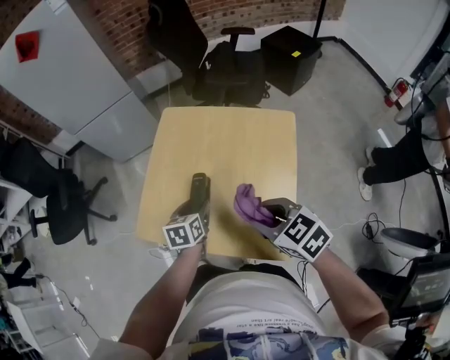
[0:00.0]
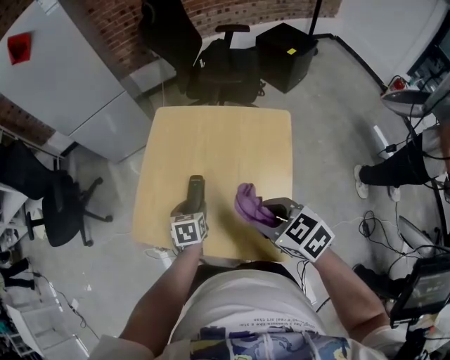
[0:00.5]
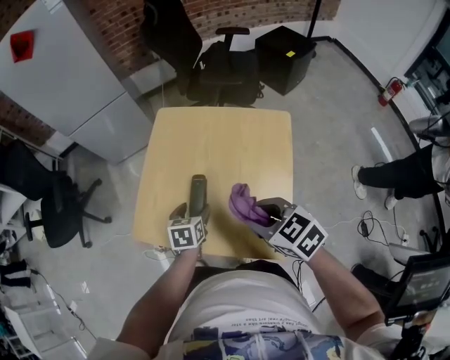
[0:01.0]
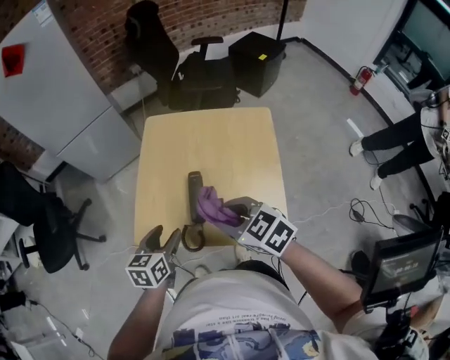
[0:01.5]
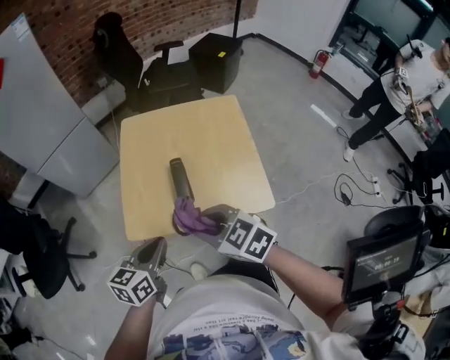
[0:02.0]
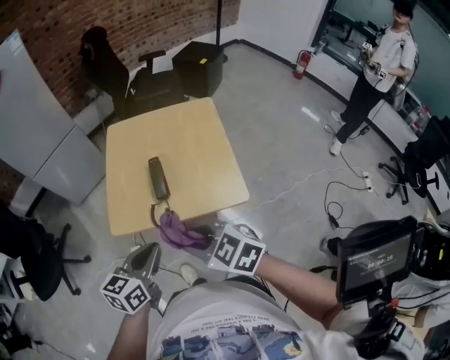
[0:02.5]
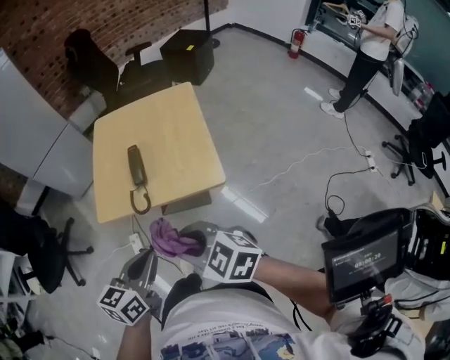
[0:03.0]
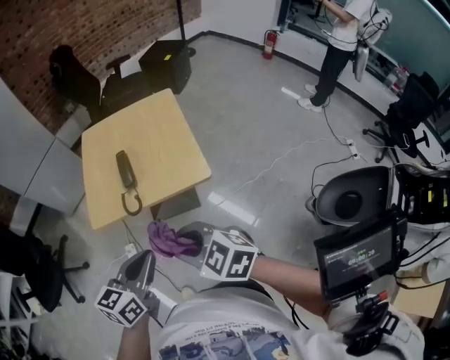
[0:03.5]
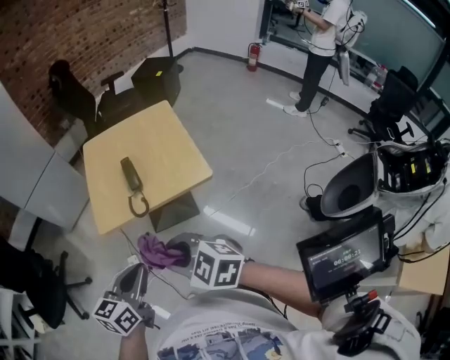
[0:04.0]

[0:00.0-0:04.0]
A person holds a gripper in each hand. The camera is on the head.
0:00.0 to 0:02.0: The right gripper goes approximately 15 cm to the left; the left gripper goes about 20 cm to the left, backward and upward, swivels approximately 40 degrees, and closes its fingers.
0:02.0 to 0:04.0: The grippers both shift backward by approximately 20 cm.

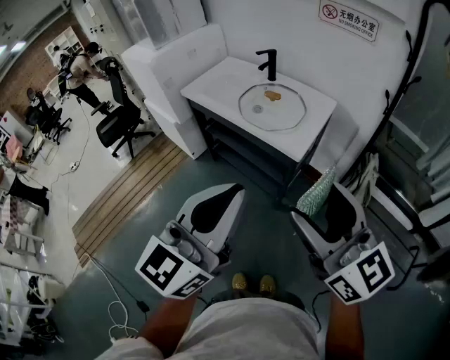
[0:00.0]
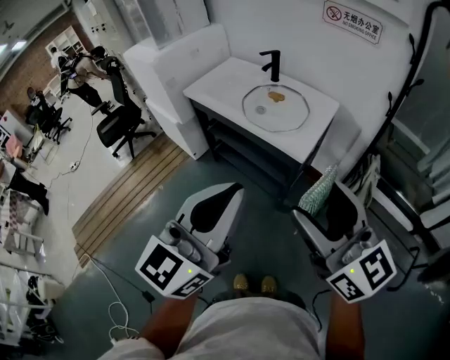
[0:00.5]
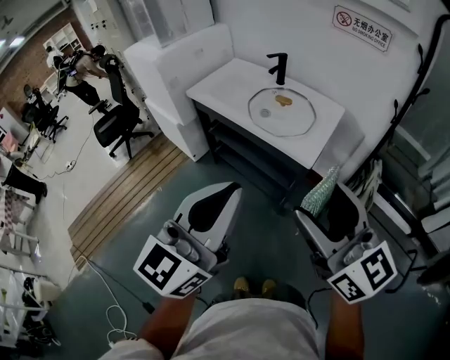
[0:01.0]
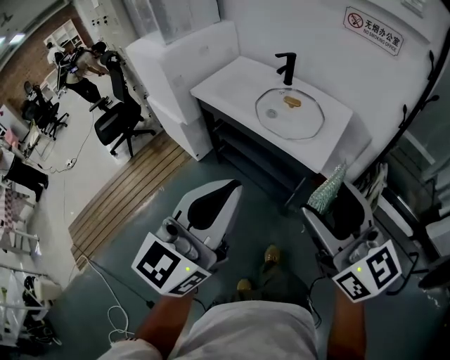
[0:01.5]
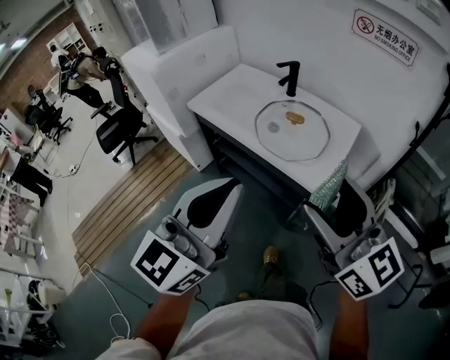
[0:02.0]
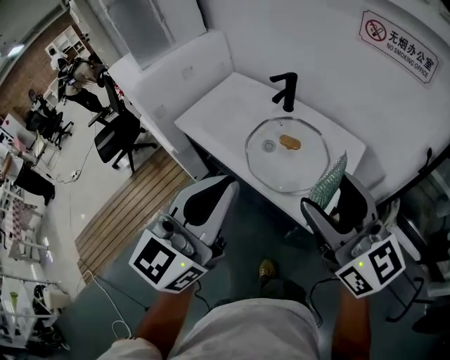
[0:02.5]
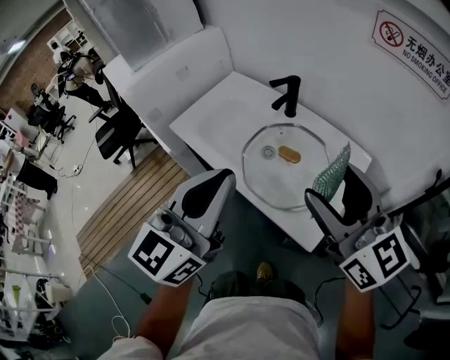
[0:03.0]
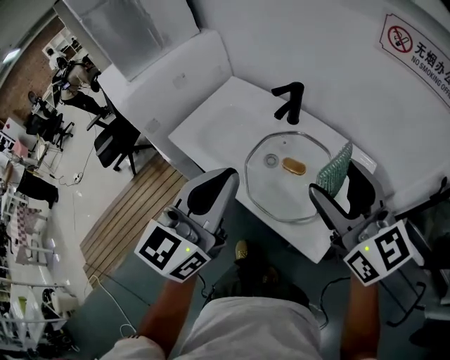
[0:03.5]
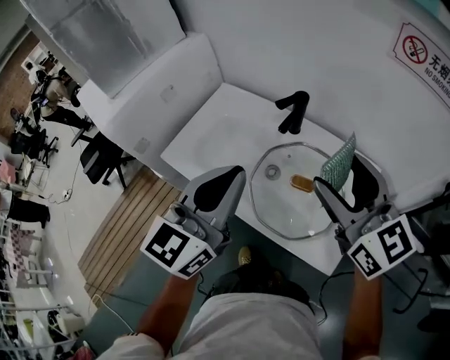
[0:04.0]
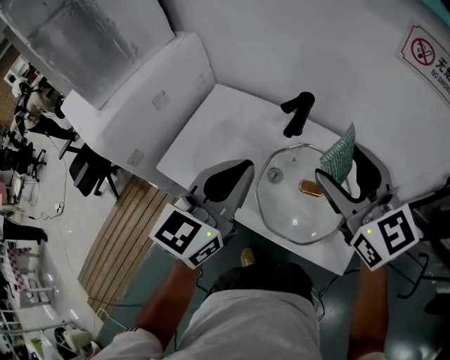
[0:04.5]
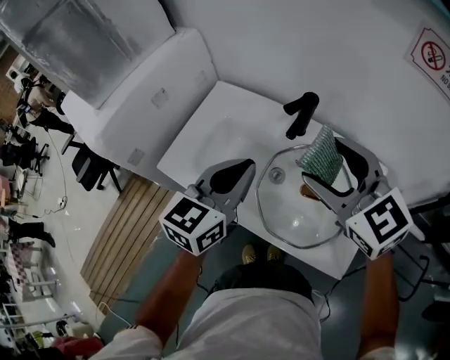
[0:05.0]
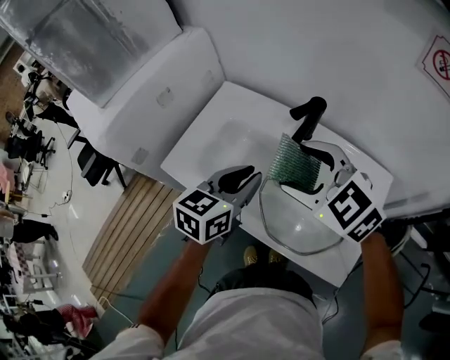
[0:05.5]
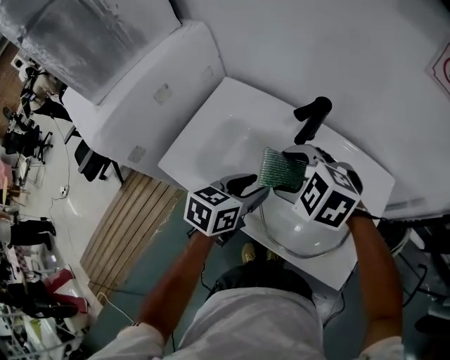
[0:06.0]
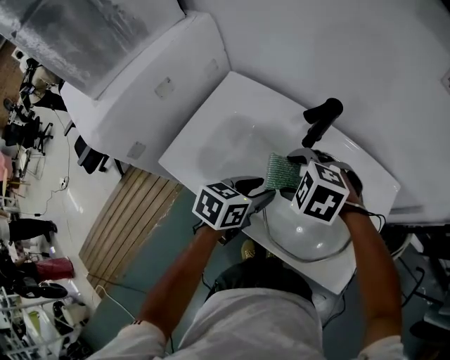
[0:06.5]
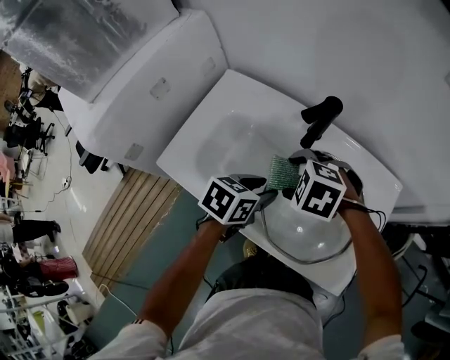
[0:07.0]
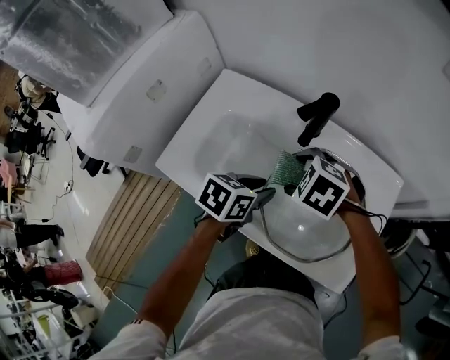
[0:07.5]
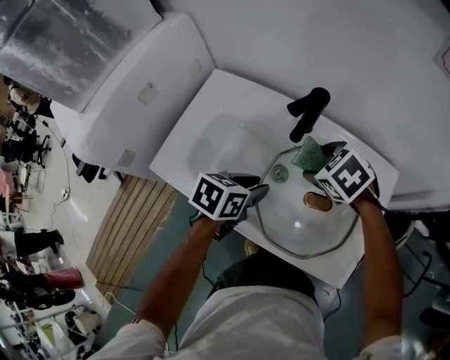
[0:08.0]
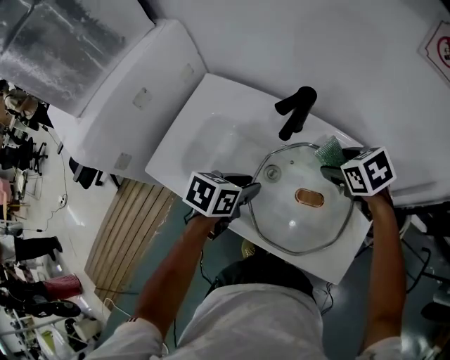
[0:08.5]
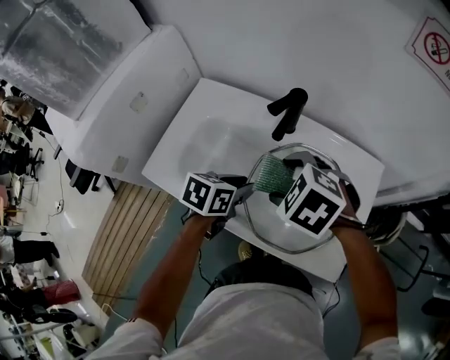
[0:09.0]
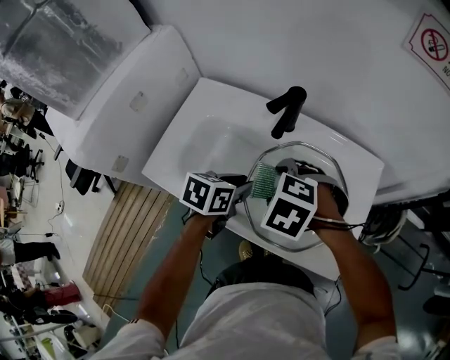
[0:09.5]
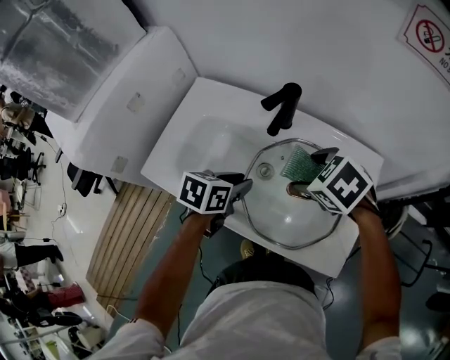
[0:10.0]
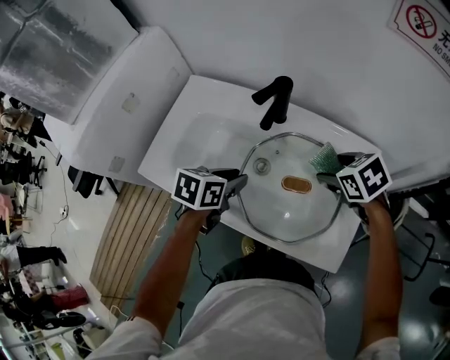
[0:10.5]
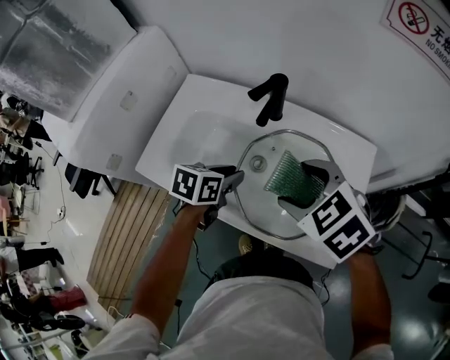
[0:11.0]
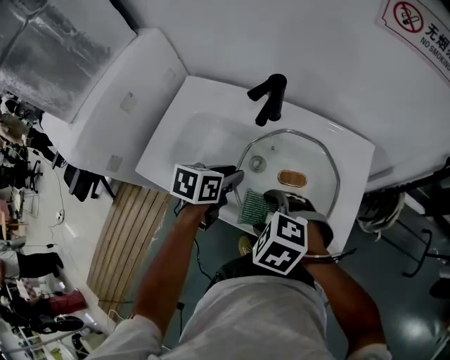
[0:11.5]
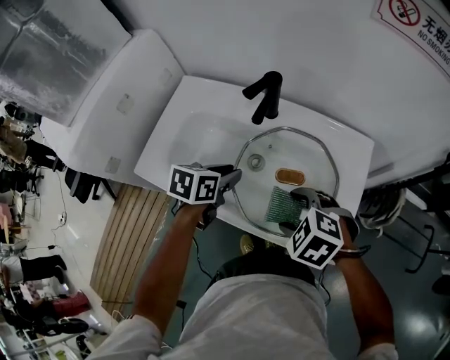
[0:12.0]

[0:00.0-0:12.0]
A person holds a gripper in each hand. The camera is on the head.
0:00.0 to 0:02.0: The left gripper goes roughly 15 cm forward and to the left. The right gripper is displaced forward by approximately 15 cm.
0:02.0 to 0:04.0: The two grippers go about 35 cm forward.
0:04.0 to 0:06.0: The right gripper is displaced downward, to the left and forward by some 25 cm, and tilts its fingers roughly 50 degrees downward. The left gripper shifts approximately 25 cm downward and forward, points its fingers roughly 30 degrees further downward, and opens.
0:06.0 to 0:08.0: The right gripper goes approximately 15 cm to the right, downward and forward, and changes its angle by approximately 30 degrees; the left gripper moves downward, approximately 5 cm.
0:08.0 to 0:10.0: The right gripper moves left and right over roughly 15 cm, changing direction 2 times.
0:10.0 to 0:12.0: The right gripper swings left and right, approximately 15 cm each way, with 2 reversals.

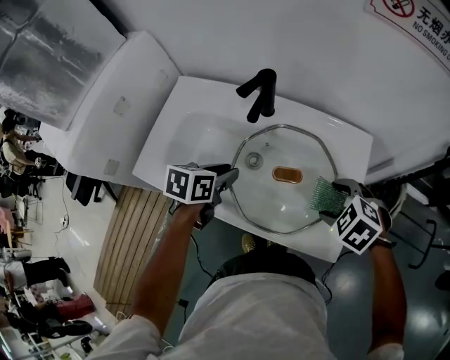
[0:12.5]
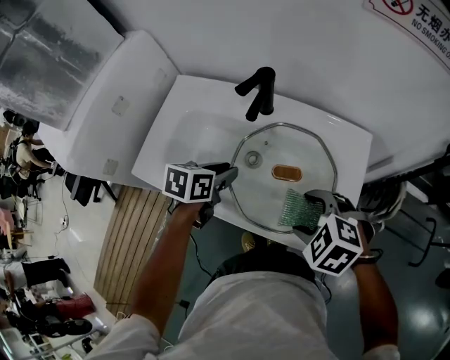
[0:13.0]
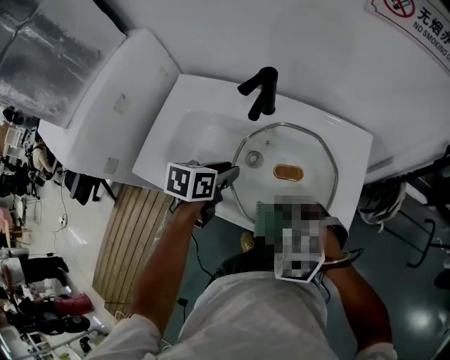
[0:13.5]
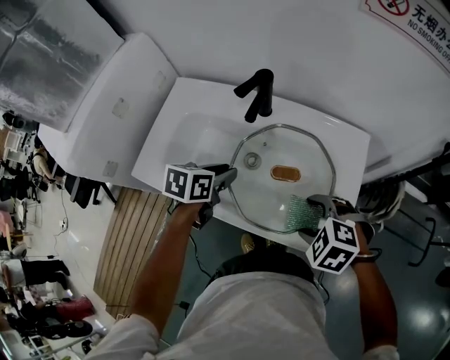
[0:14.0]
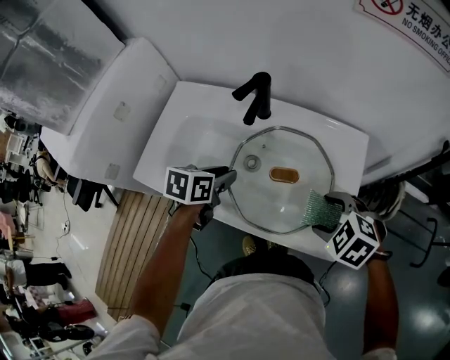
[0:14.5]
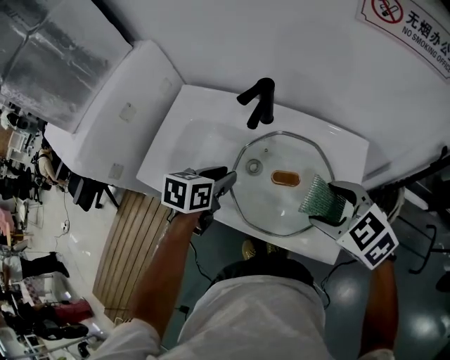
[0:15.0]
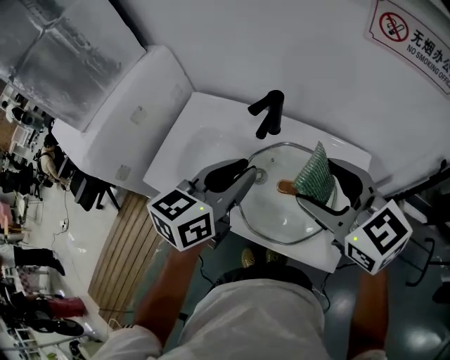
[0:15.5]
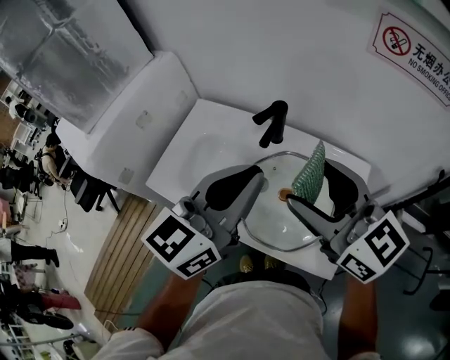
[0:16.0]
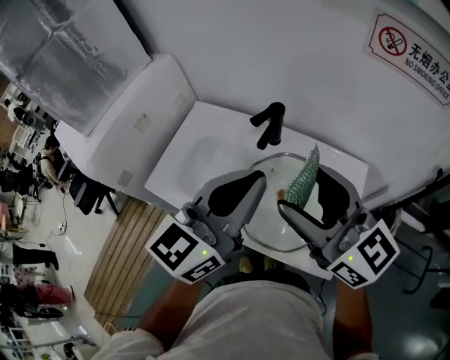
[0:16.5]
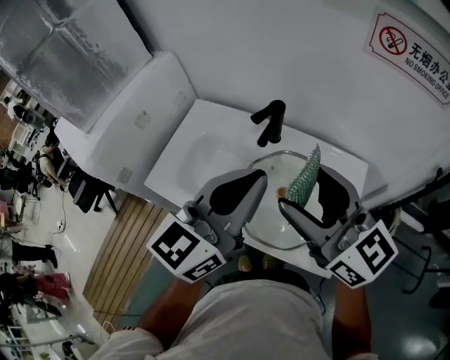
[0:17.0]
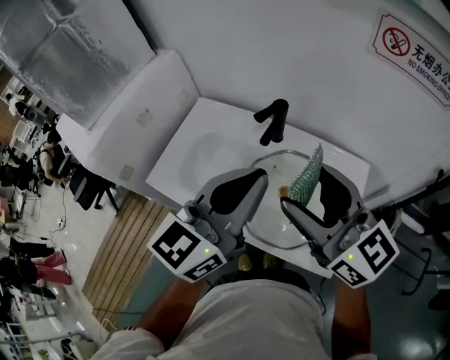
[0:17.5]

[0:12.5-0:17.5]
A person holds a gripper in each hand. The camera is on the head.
0:12.5 to 0:15.0: The right gripper is displaced upward by some 10 cm, goes to the left and returns, some 15 cm each way, and rotates about 20 degrees.
0:15.0 to 0:17.5: The right gripper heads upward and to the left, covering about 20 cm, and angles its fingers upward, by approximately 50 degrees. Meanwhile the left gripper goes about 25 cm upward, points its fingers approximately 50 degrees further upward, and closes.

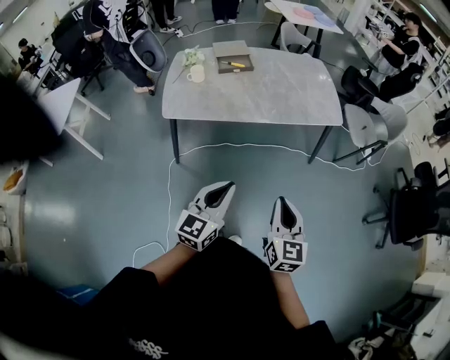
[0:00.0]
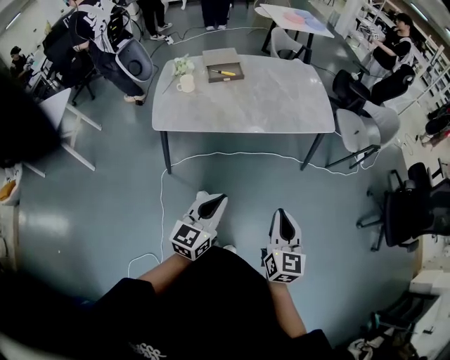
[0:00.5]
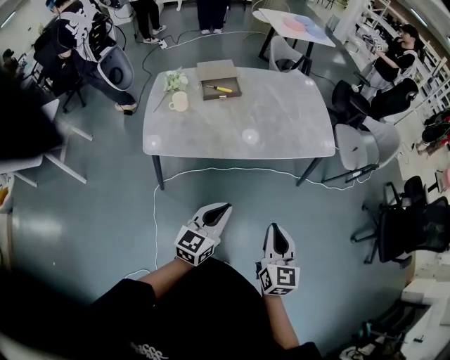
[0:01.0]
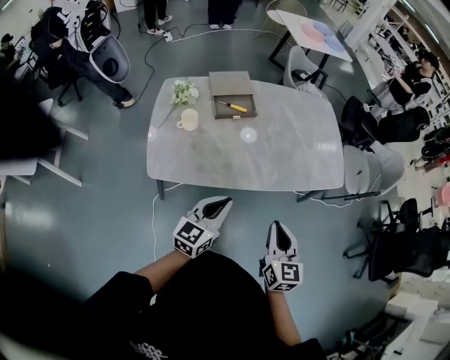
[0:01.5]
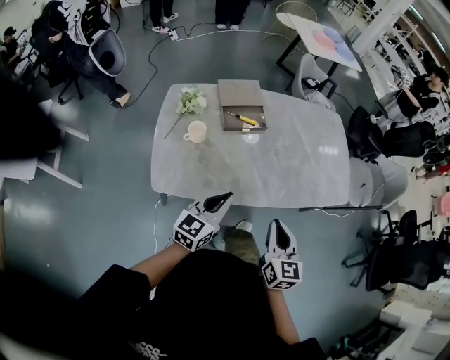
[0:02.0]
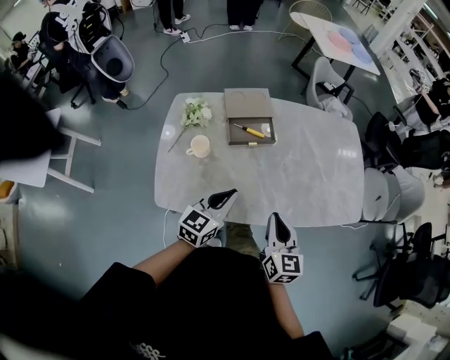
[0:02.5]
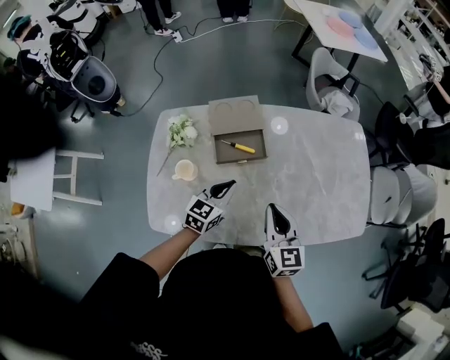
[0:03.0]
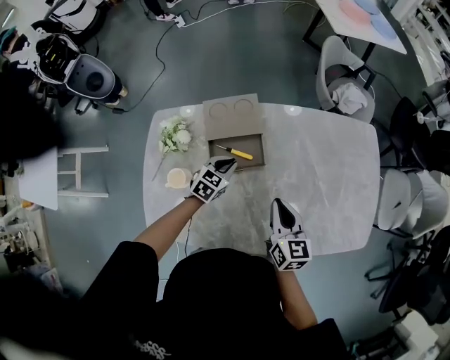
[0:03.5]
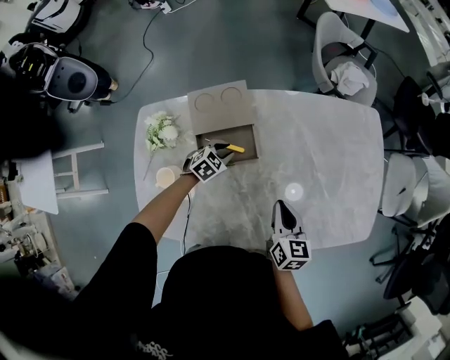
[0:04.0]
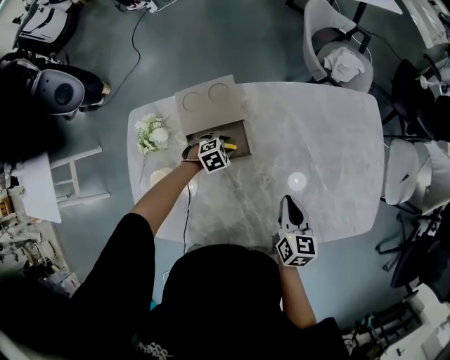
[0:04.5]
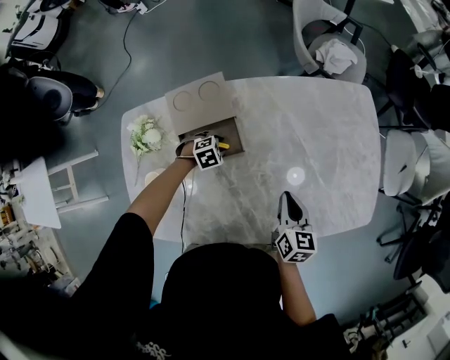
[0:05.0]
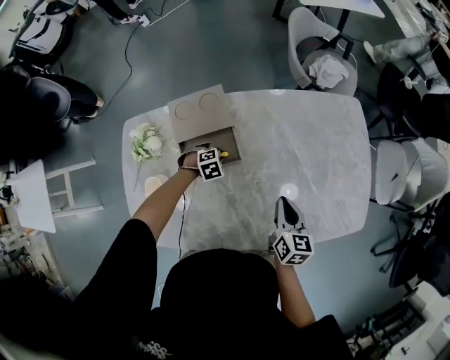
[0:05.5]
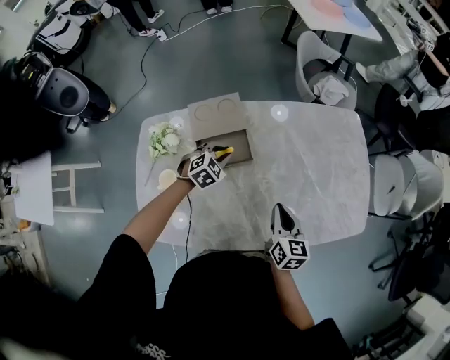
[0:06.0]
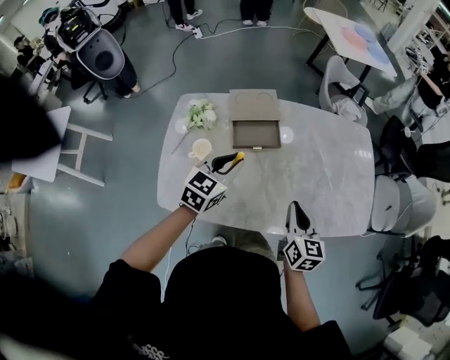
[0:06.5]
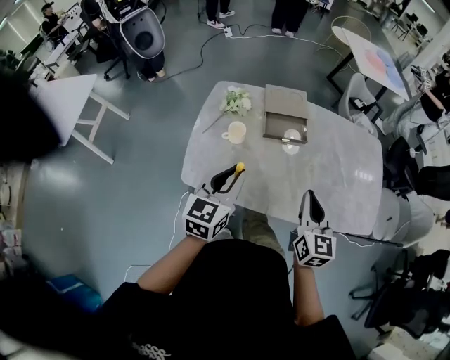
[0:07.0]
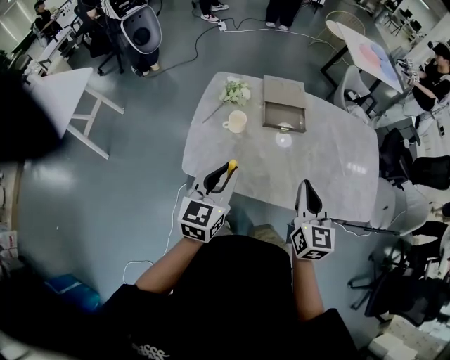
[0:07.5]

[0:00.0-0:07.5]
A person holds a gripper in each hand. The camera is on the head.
0:00.0 to 0:02.0: The pair of grippers is taken forward and to the left, about 50 cm.
0:02.0 to 0:04.0: The left gripper moves forward and downward, approximately 60 cm, angles its fingers downward, by roughly 50 degrees, and opens its fingers, while the right gripper goes roughly 40 cm forward, and rotates about 20 degrees.
0:04.0 to 0:05.5: The left gripper ends up approximately 5 cm from where it was, and turns by roughly 30 degrees, while the right gripper moves some 5 cm.
0:05.5 to 0:07.5: The left gripper ends up approximately 60 cm from where it was, and tips its fingers upward by roughly 70 degrees. Meanwhile the right gripper moves approximately 40 cm, and turns by about 40 degrees.
